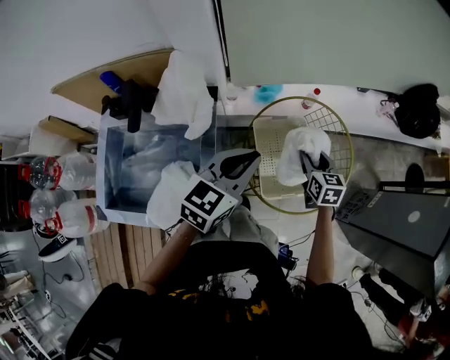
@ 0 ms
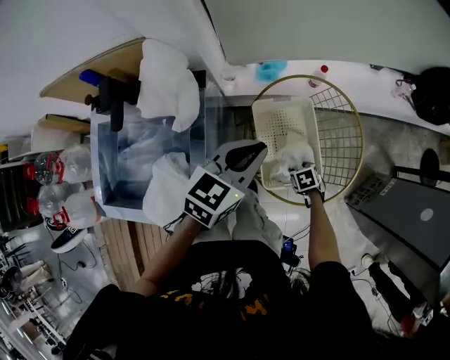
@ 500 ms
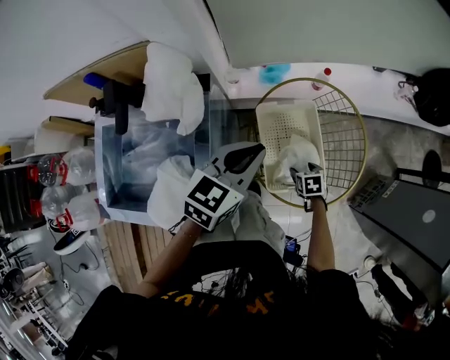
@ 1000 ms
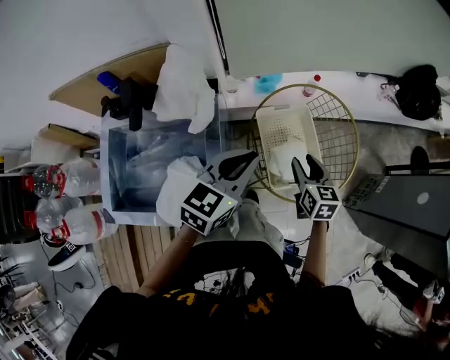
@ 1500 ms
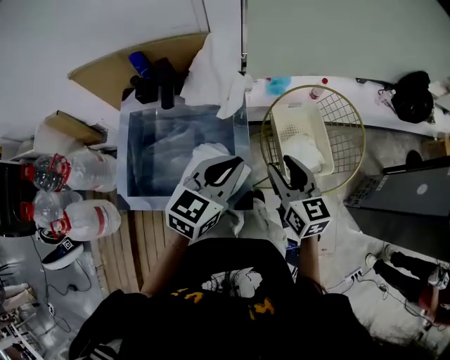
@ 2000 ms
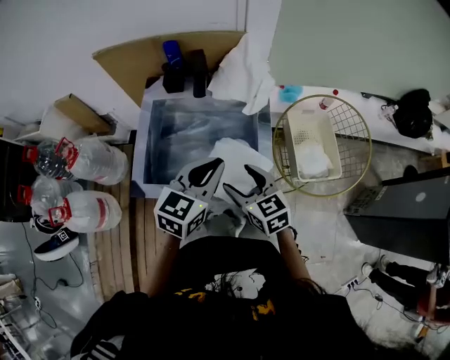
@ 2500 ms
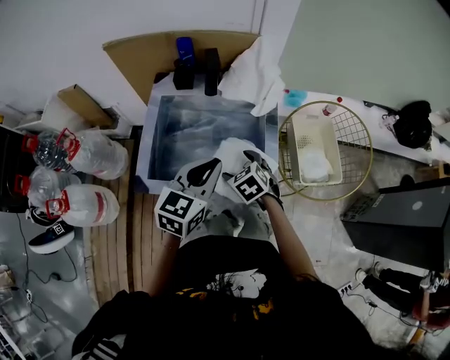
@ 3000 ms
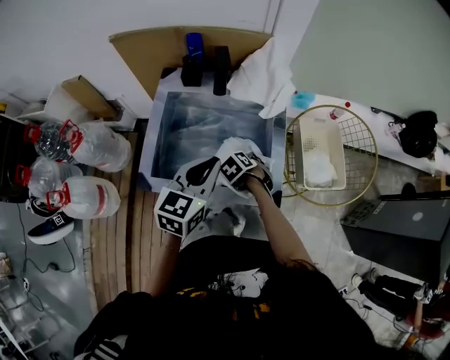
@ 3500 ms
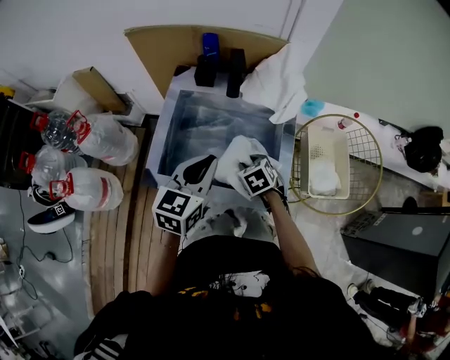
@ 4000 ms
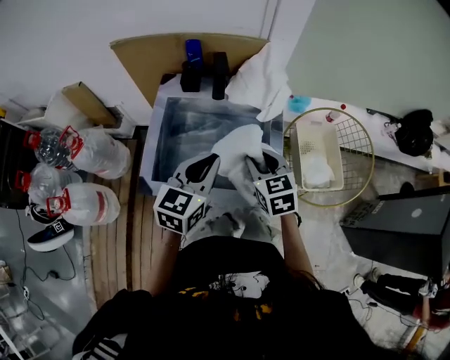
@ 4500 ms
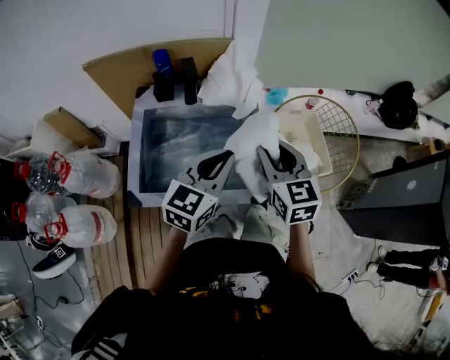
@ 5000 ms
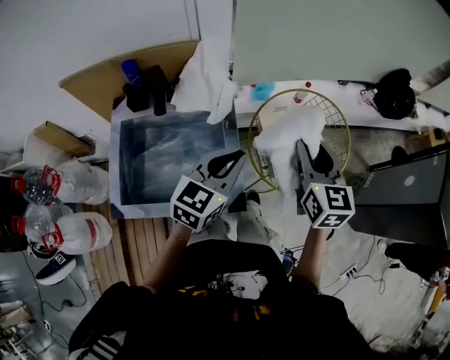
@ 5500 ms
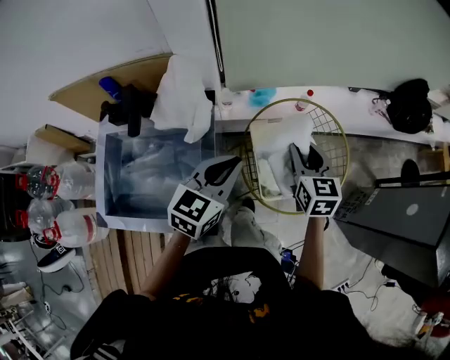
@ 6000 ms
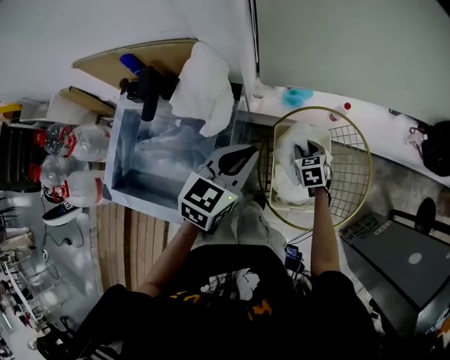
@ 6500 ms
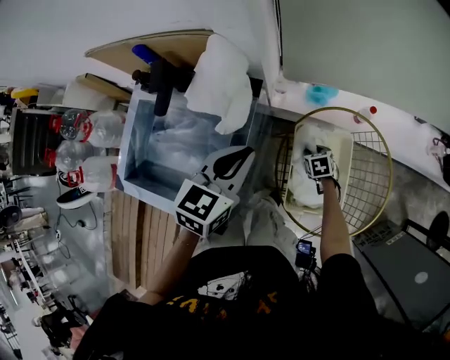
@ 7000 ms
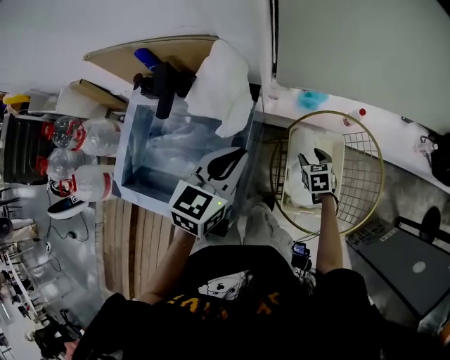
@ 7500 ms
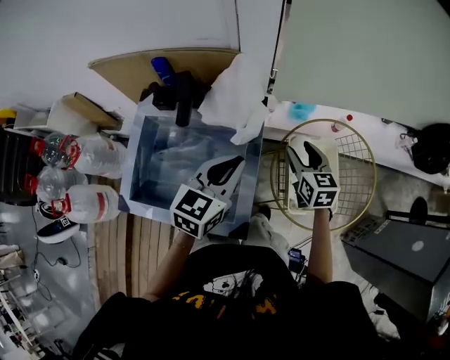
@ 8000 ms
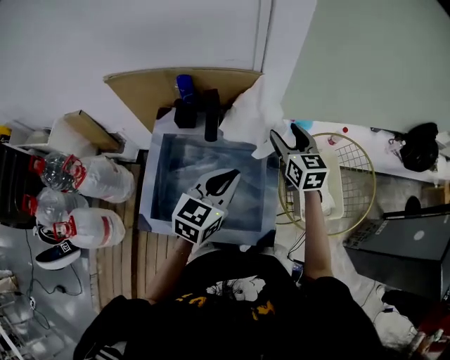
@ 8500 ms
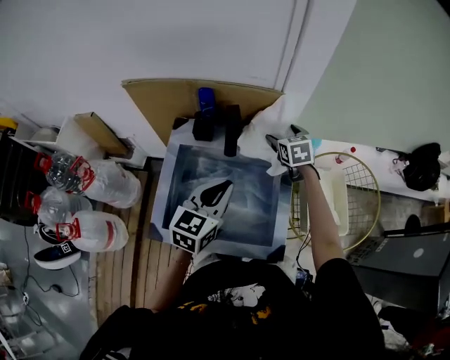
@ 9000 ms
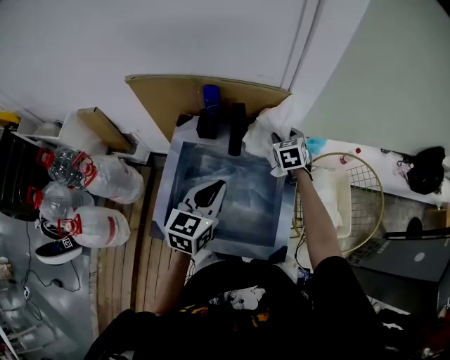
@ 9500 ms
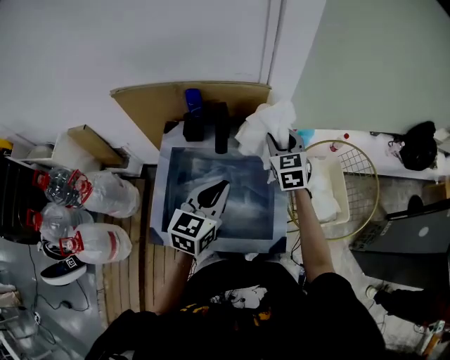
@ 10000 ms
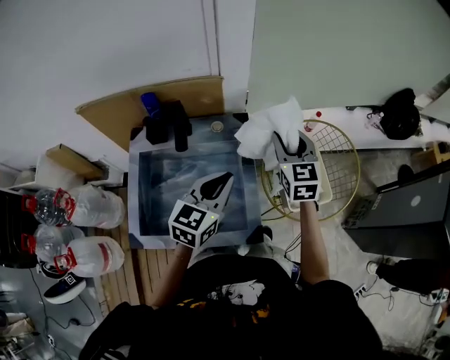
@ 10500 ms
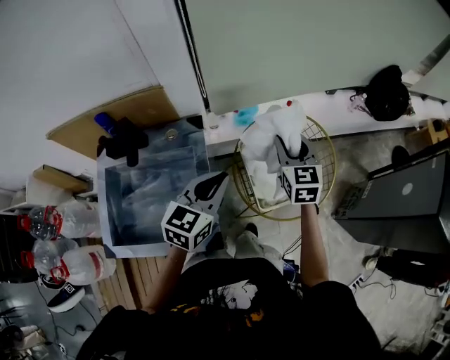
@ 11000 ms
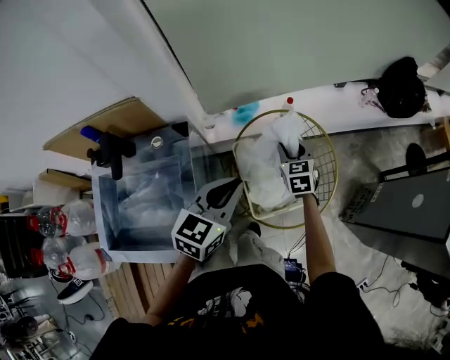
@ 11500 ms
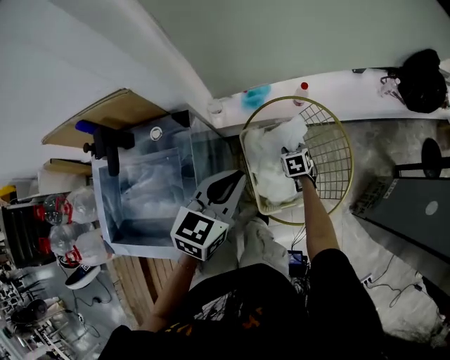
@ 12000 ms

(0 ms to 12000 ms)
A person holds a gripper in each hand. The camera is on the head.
0 ms - 2000 ms: The left gripper travels to the left and backward by roughly 20 cm; the right gripper heads to the left and backward, covering approximately 30 cm, and goes downward and returns, approximately 25 cm each way.
2000 ms - 4000 ms: The right gripper shifts by some 30 cm, points its fingers some 40 degrees further downward, and opens, then closes again; the left gripper ends up roughly 20 cm from where it was, and rotates approximately 20 degrees.
4000 ms - 6000 ms: The left gripper shifts by about 35 cm, and changes its angle by roughly 20 degrees. The right gripper changes place by some 40 cm, and tilts its fingers about 30 degrees upward.
6000 ms - 8000 ms: Both grippers move to the left, approximately 15 cm. The right gripper goes downward and returns, about 35 cm each way.
8000 ms - 10000 ms: The right gripper travels to the left and upward by approximately 20 cm, turns by roughly 20 degrees, and opens, then closes once more; the left gripper is displaced to the left by roughly 15 cm.
10000 ms - 12000 ms: The right gripper travels to the right and downward by roughly 50 cm, and tilts its fingers about 40 degrees downward. The left gripper travels to the right and forward by roughly 40 cm.

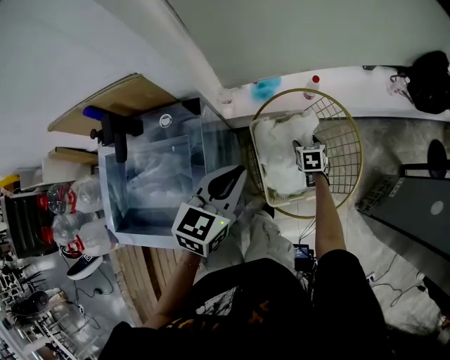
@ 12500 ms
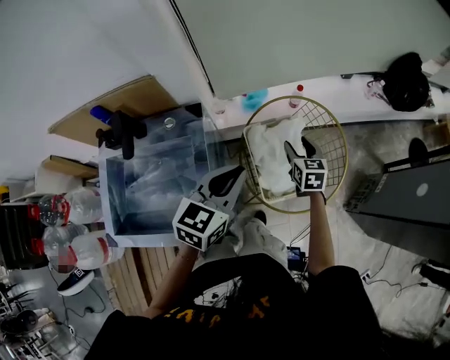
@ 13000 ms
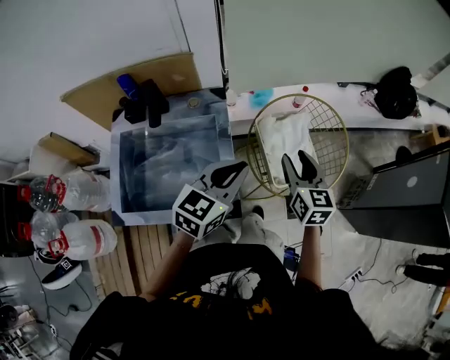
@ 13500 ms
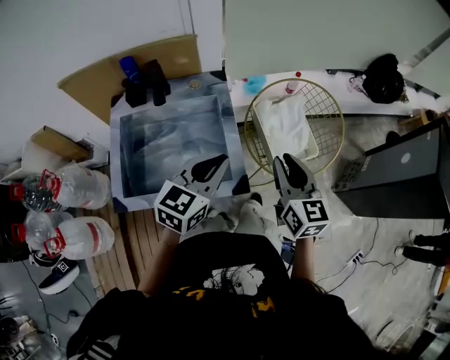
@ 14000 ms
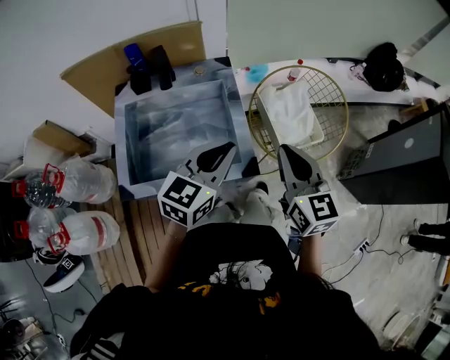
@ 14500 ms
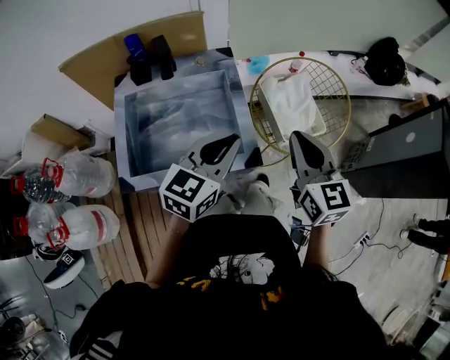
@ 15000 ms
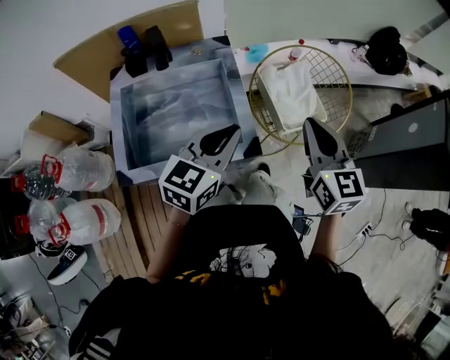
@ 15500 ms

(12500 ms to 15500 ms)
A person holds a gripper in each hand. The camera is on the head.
12500 ms - 14000 ms: The right gripper shifts approximately 50 cm upward, backward and to the left, points its fingers some 40 degrees further upward, and closes. Meanwhile the left gripper travels backward and to the left by about 25 cm.
14000 ms - 15500 ms: The right gripper moves some 5 cm.

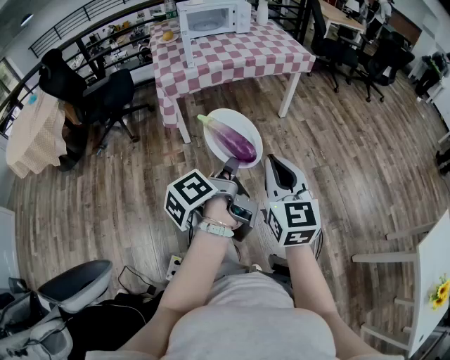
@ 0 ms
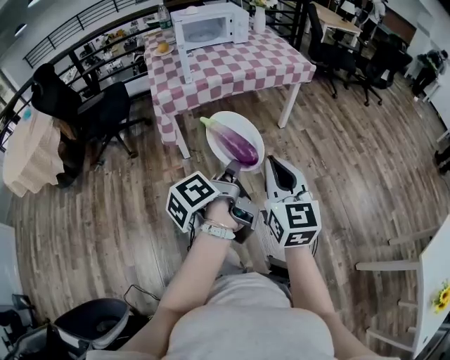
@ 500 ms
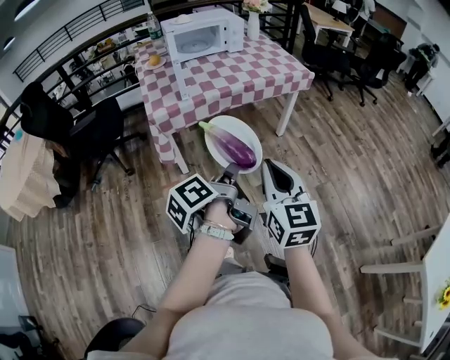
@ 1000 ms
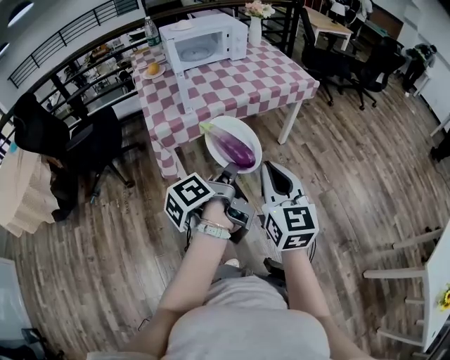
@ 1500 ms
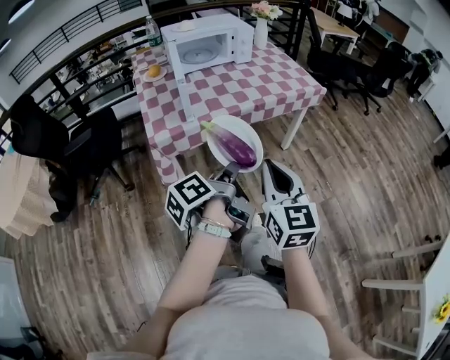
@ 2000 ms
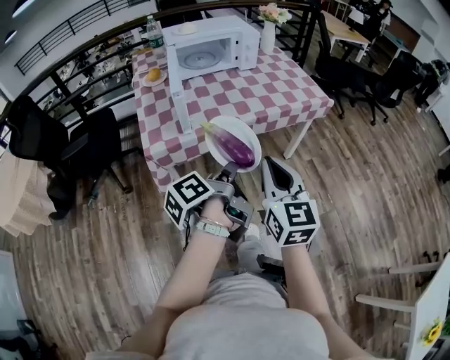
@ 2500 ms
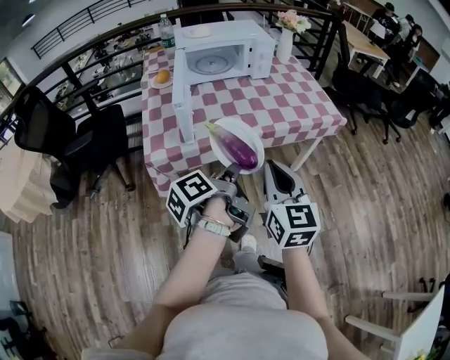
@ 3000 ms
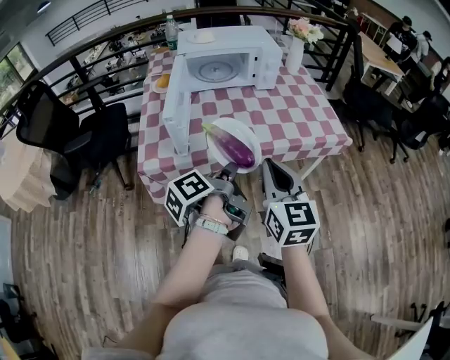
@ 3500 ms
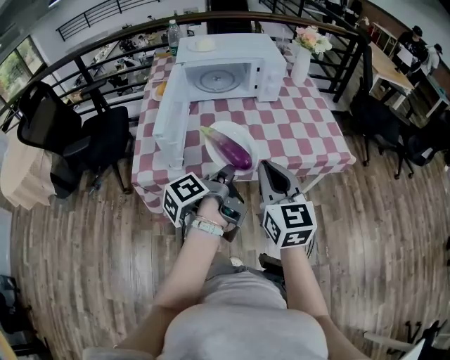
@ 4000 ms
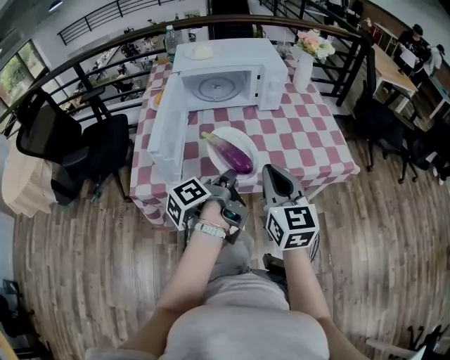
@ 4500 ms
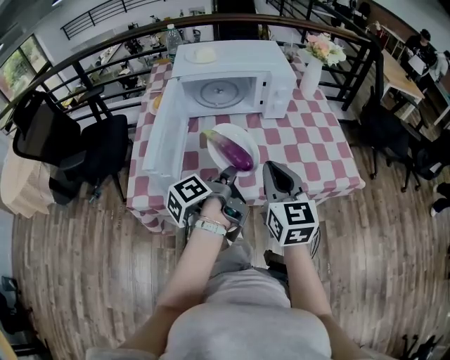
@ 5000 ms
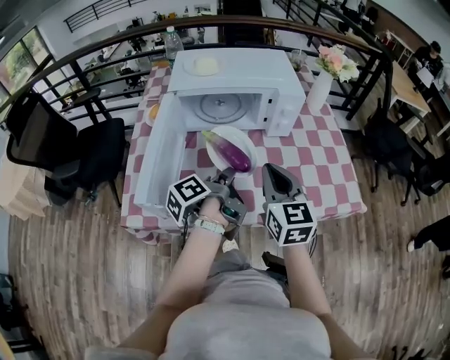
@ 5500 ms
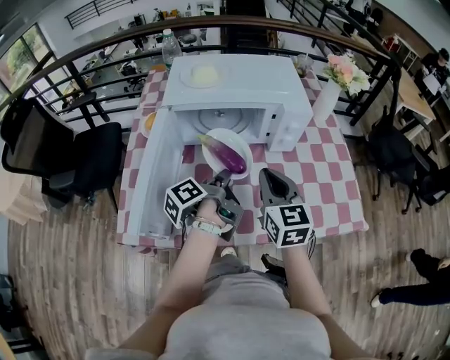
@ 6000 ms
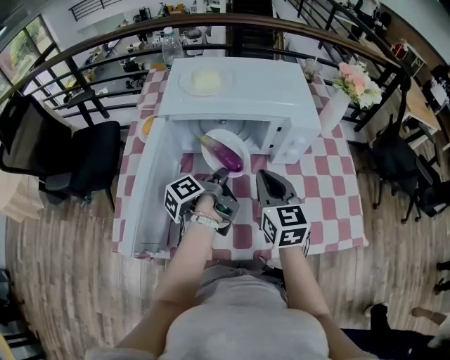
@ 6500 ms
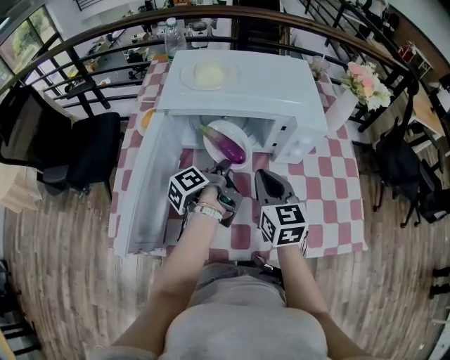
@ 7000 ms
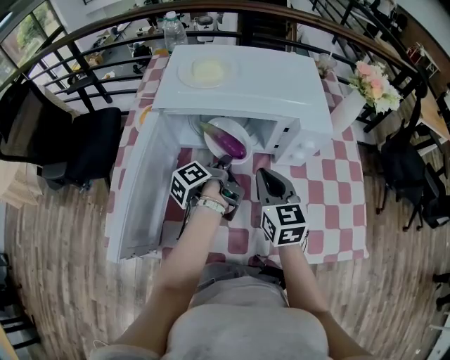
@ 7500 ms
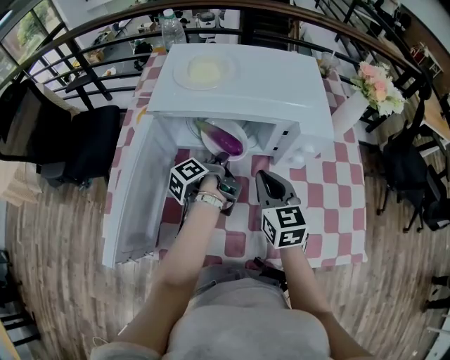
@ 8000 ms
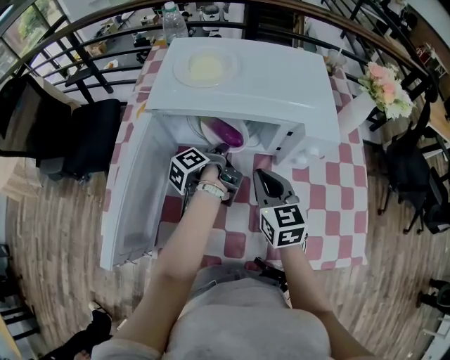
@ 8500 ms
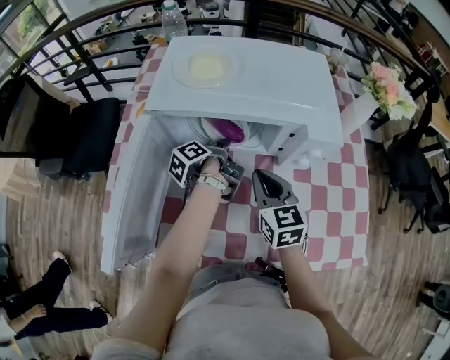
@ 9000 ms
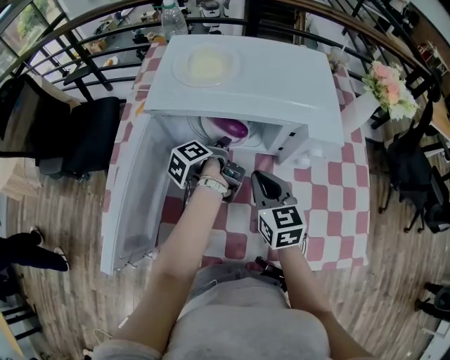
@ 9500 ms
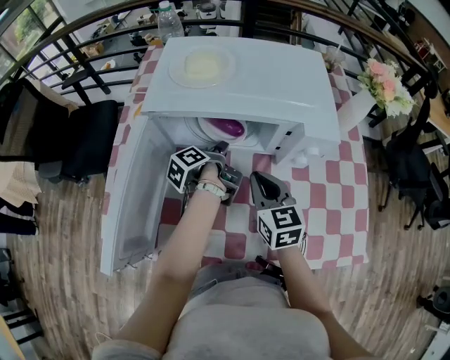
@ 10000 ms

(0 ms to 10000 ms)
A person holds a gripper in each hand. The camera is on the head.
0 ms - 2000 ms: The right gripper ends up approximately 35 cm from where it was.
2000 ms - 4000 ms: The right gripper shifts by some 35 cm.
4000 ms - 6000 ms: The right gripper changes place by roughly 30 cm.
6000 ms - 8000 ms: The right gripper changes place by about 15 cm.

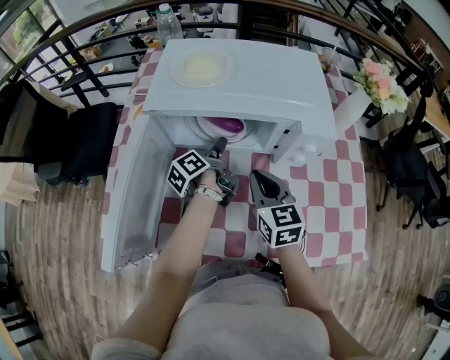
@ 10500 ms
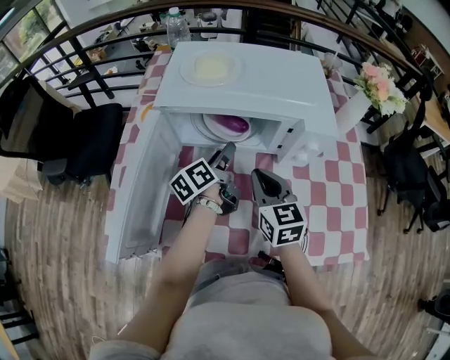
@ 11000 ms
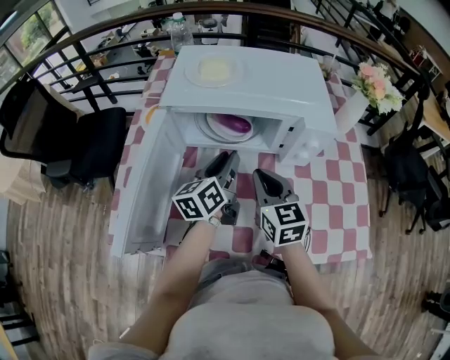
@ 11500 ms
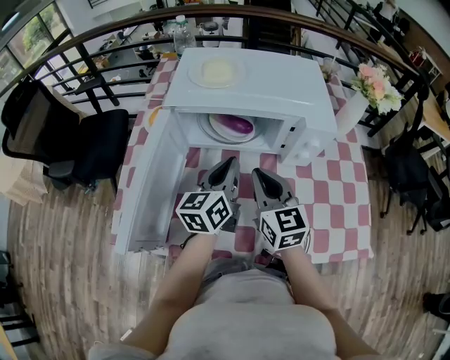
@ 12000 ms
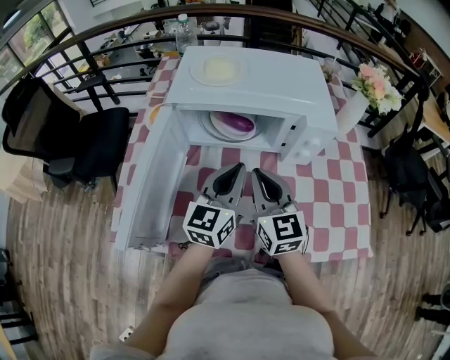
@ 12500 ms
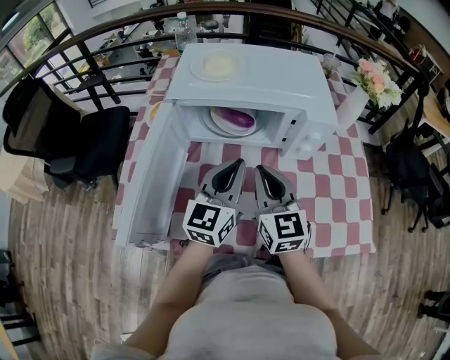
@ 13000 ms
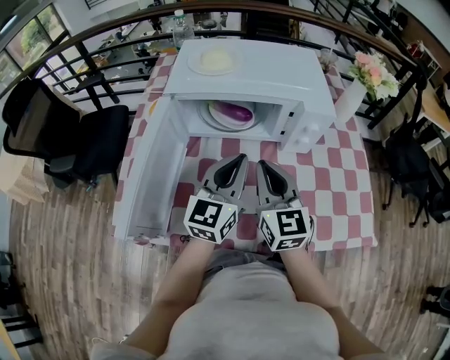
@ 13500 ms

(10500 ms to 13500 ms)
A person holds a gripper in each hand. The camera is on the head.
10500 ms - 12000 ms: The right gripper ends up some 5 cm from where it was.
